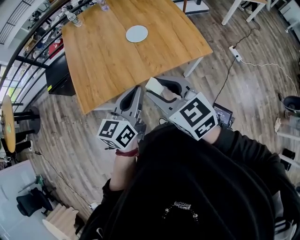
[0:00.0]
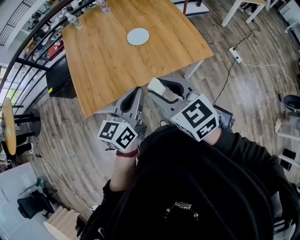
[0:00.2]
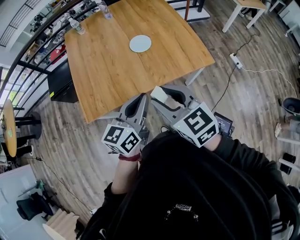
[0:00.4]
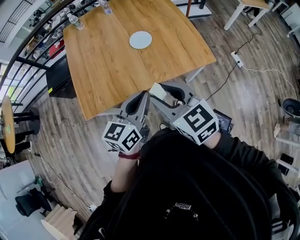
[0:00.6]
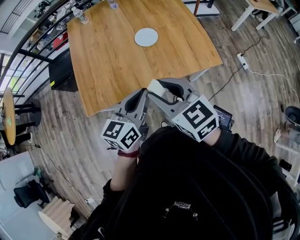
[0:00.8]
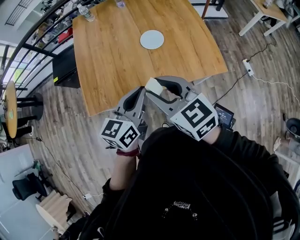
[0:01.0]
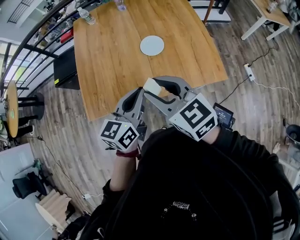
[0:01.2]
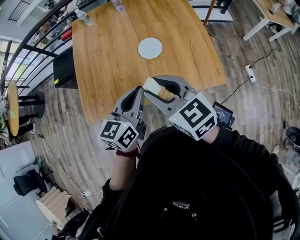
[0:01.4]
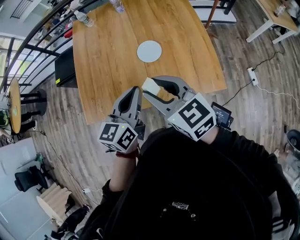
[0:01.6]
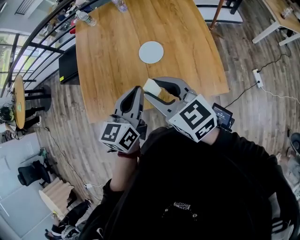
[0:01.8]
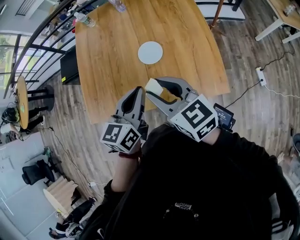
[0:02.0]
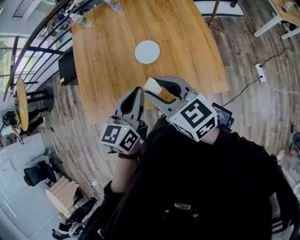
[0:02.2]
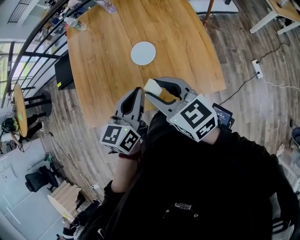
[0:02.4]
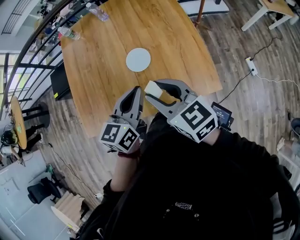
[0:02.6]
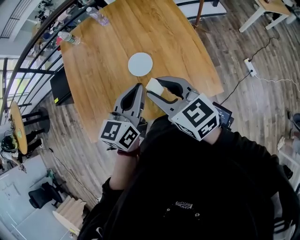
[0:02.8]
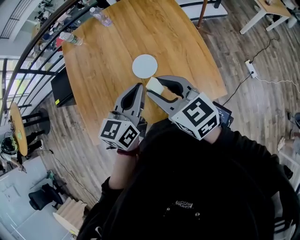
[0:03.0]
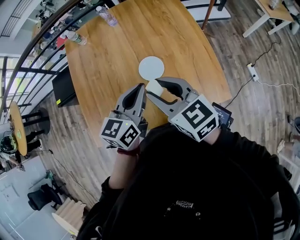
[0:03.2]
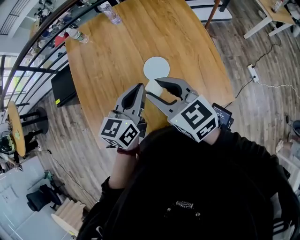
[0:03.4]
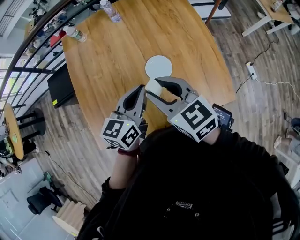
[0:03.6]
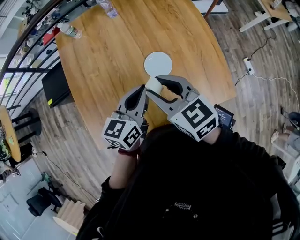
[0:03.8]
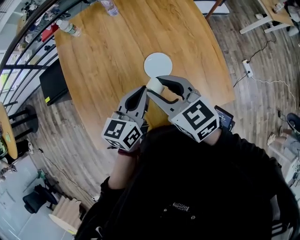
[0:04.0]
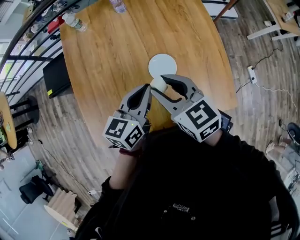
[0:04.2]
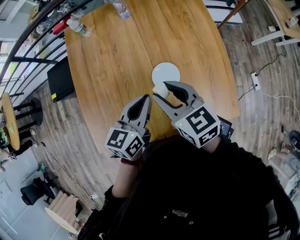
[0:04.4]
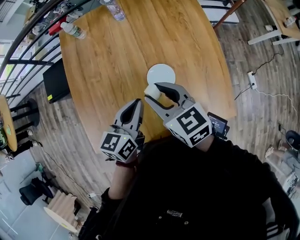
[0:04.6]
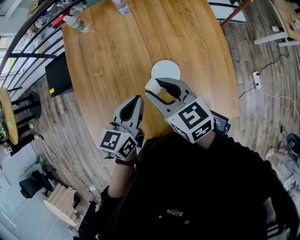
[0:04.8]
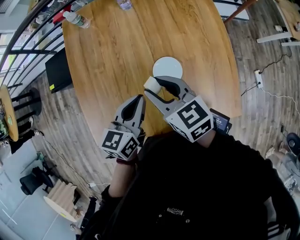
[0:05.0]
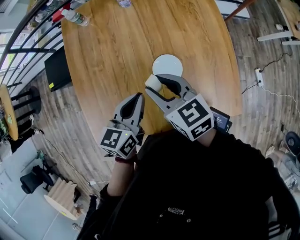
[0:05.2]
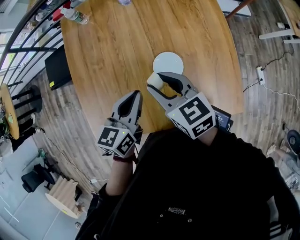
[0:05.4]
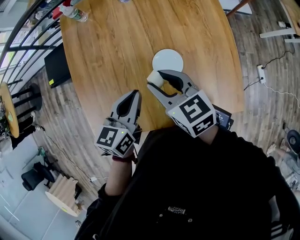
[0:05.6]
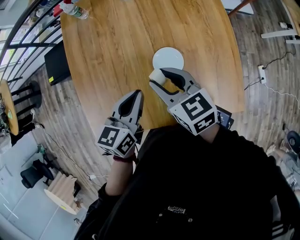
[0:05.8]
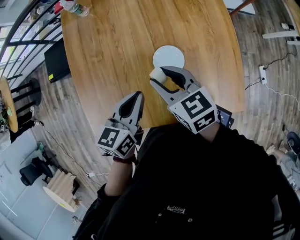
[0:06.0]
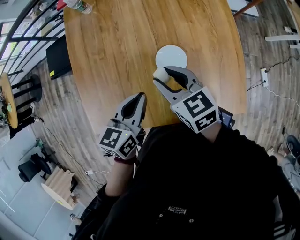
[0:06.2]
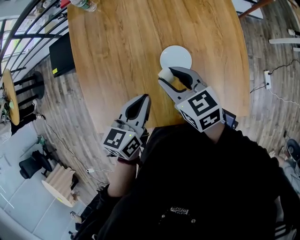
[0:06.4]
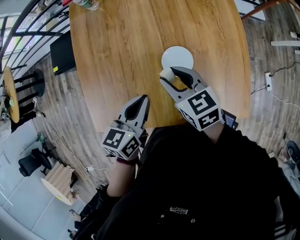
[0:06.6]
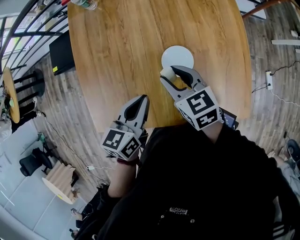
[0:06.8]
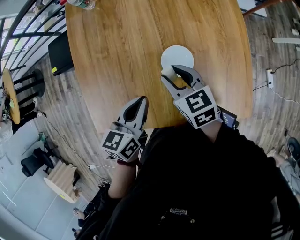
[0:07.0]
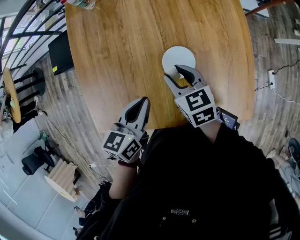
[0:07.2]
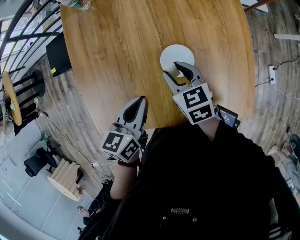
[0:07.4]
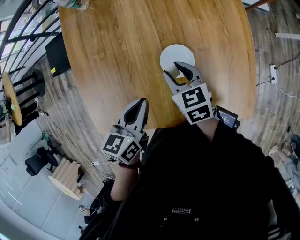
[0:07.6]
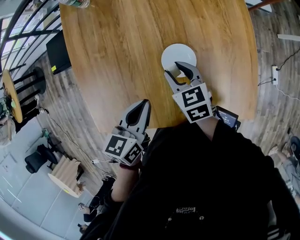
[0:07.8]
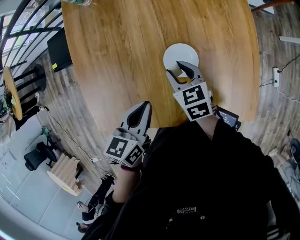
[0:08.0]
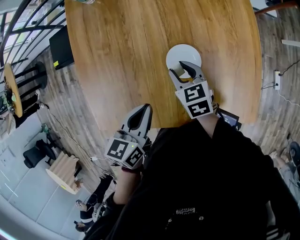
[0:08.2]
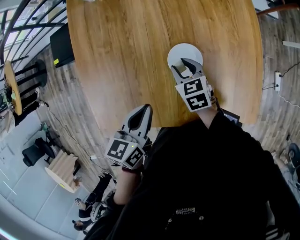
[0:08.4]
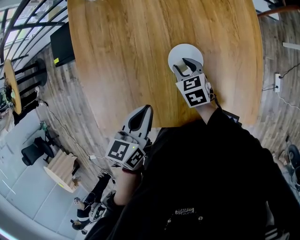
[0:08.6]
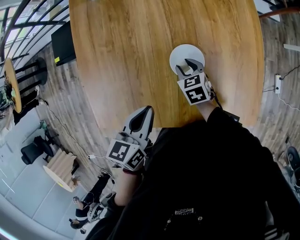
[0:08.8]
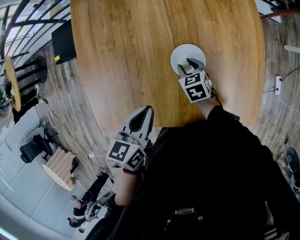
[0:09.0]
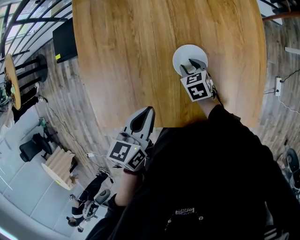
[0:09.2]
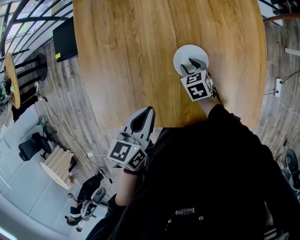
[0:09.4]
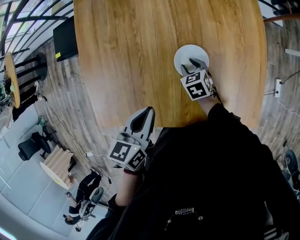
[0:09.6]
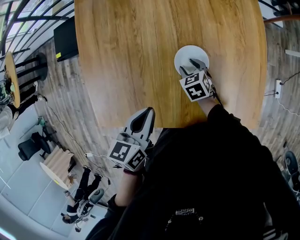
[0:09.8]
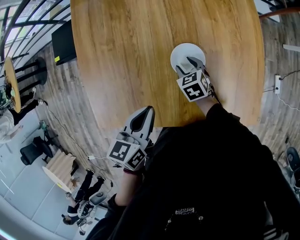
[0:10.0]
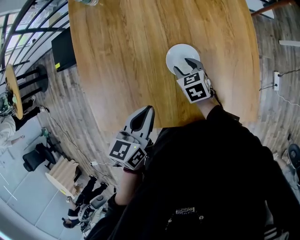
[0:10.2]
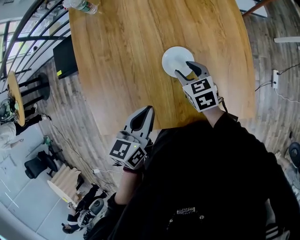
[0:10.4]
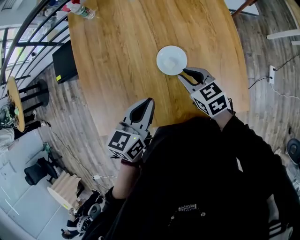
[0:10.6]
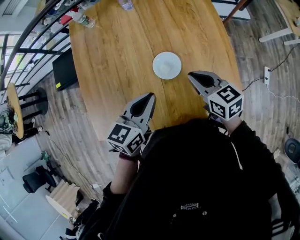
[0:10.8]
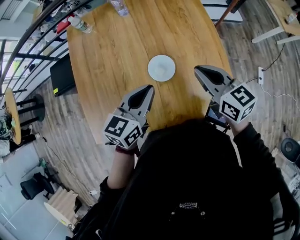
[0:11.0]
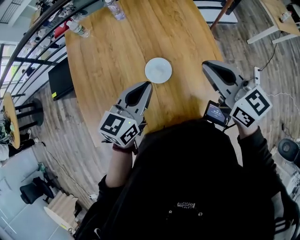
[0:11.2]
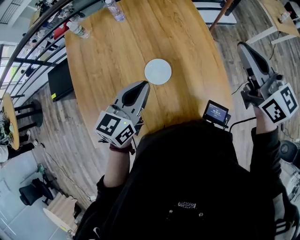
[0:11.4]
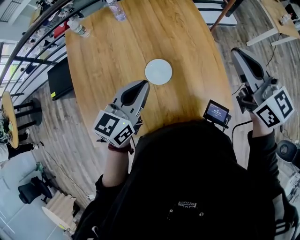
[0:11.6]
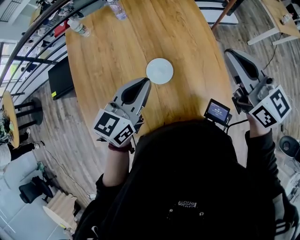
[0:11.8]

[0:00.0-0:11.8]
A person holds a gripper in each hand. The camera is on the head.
0:00.0 to 0:01.4: The grippers both shift forward by some 15 cm.
0:01.4 to 0:03.0: Both grippers move forward and to the right, some 15 cm.
0:03.0 to 0:04.4: The left gripper goes approximately 15 cm to the left, forward and downward. Meanwhile the right gripper is displaced forward, to the left and downward by about 15 cm.
0:04.4 to 0:06.0: The right gripper heads downward, covering some 5 cm.
0:06.0 to 0:07.4: The right gripper is displaced downward by some 10 cm.
0:07.4 to 0:08.8: The right gripper shifts about 15 cm downward.
0:08.8 to 0:10.4: The right gripper is displaced upward by roughly 10 cm.
0:10.4 to 0:11.8: The left gripper moves upward, forward and to the right, about 15 cm, and turns by about 30 degrees; the right gripper travels upward and to the right by some 40 cm, angles its fingers upward, by about 40 degrees, and closes its fingers.

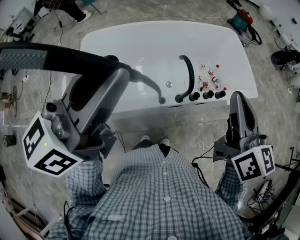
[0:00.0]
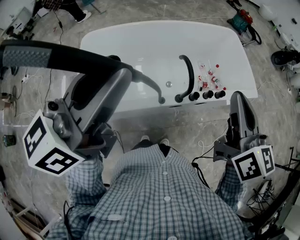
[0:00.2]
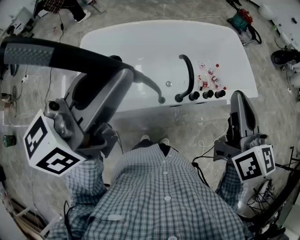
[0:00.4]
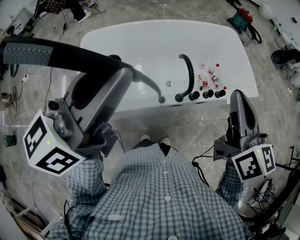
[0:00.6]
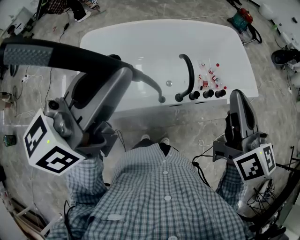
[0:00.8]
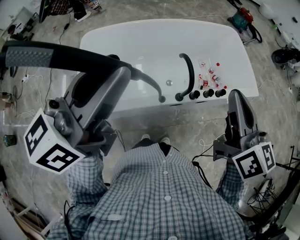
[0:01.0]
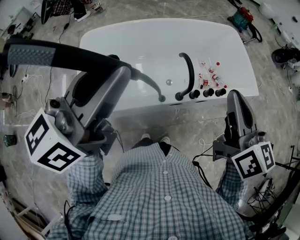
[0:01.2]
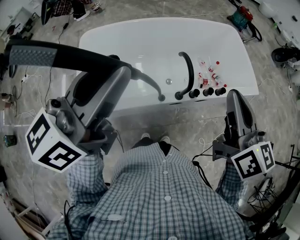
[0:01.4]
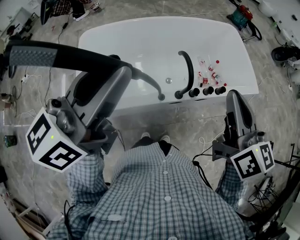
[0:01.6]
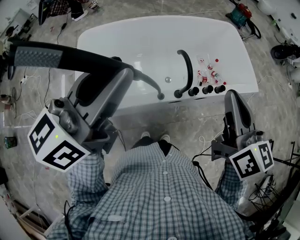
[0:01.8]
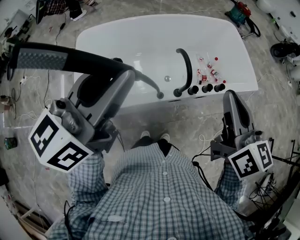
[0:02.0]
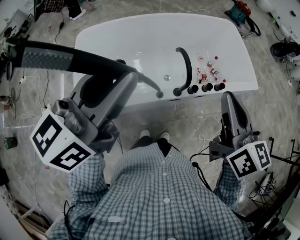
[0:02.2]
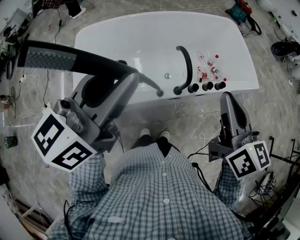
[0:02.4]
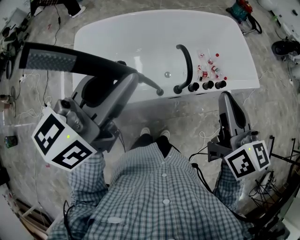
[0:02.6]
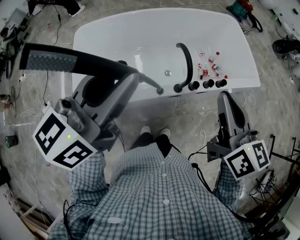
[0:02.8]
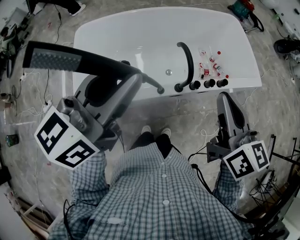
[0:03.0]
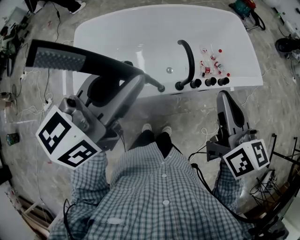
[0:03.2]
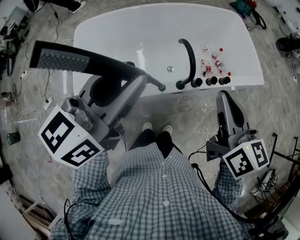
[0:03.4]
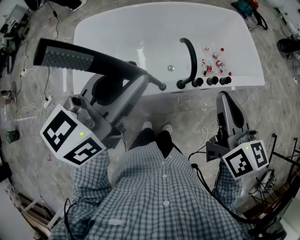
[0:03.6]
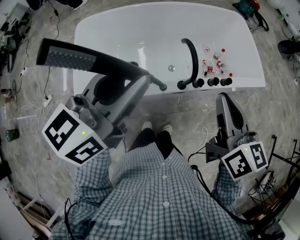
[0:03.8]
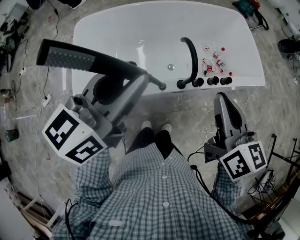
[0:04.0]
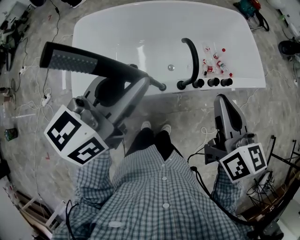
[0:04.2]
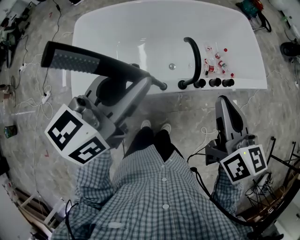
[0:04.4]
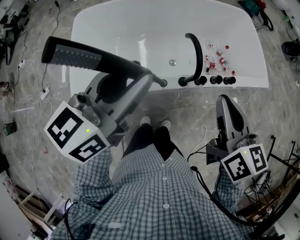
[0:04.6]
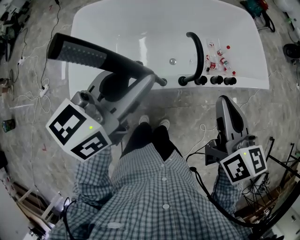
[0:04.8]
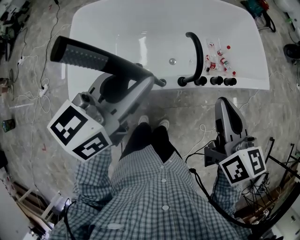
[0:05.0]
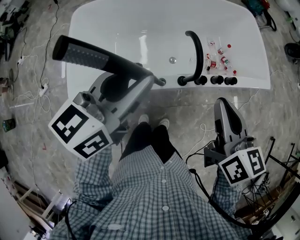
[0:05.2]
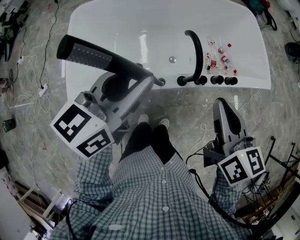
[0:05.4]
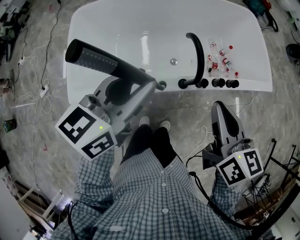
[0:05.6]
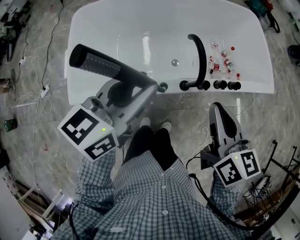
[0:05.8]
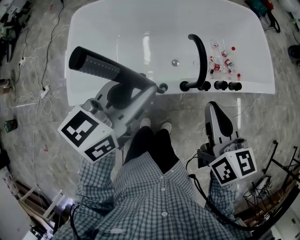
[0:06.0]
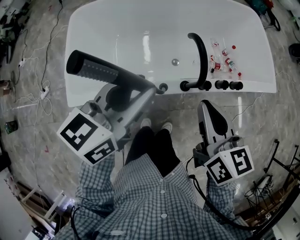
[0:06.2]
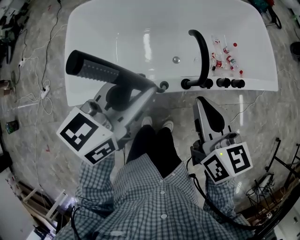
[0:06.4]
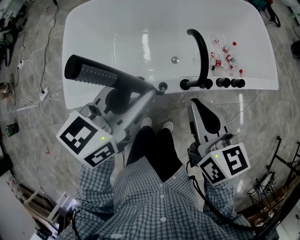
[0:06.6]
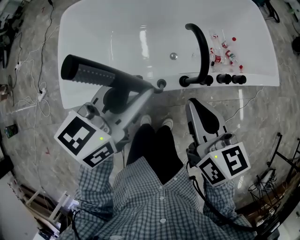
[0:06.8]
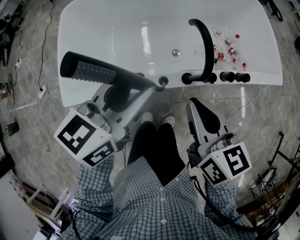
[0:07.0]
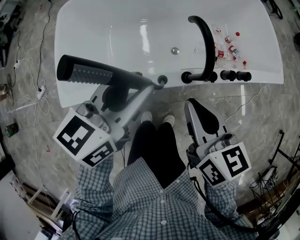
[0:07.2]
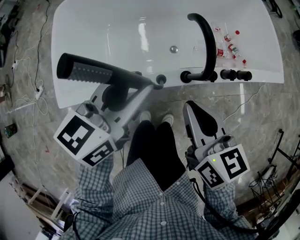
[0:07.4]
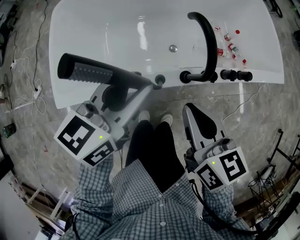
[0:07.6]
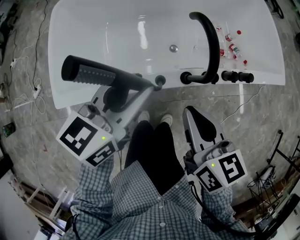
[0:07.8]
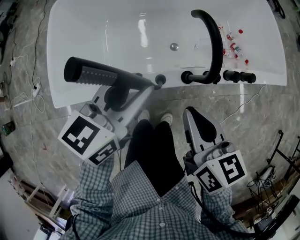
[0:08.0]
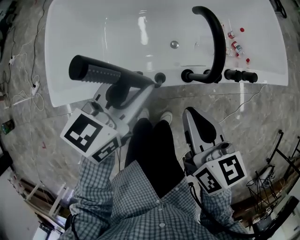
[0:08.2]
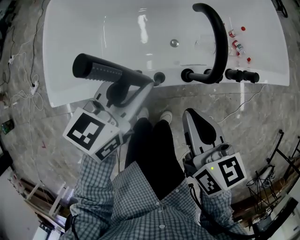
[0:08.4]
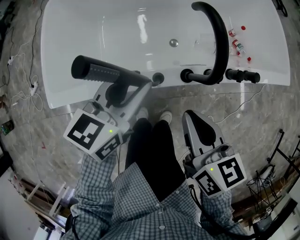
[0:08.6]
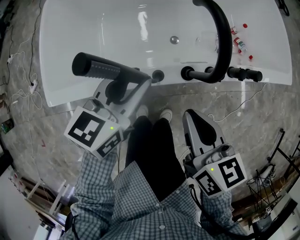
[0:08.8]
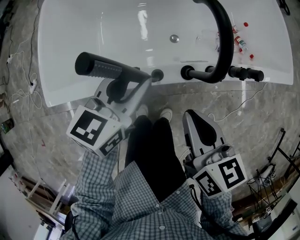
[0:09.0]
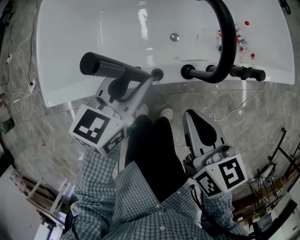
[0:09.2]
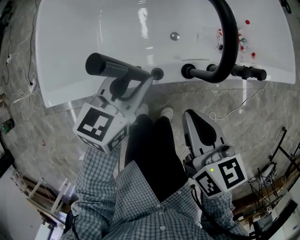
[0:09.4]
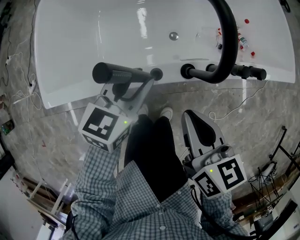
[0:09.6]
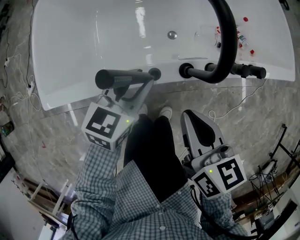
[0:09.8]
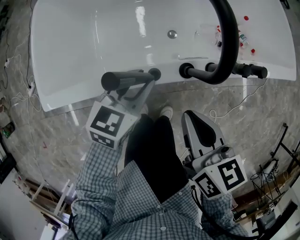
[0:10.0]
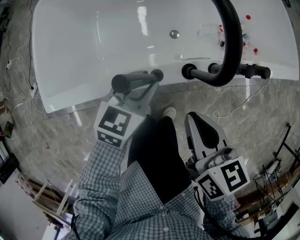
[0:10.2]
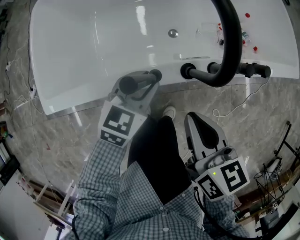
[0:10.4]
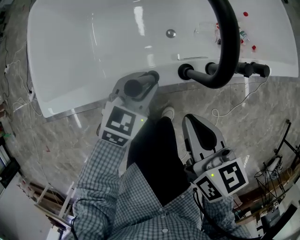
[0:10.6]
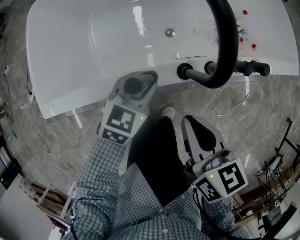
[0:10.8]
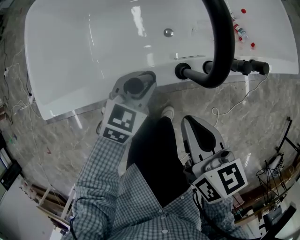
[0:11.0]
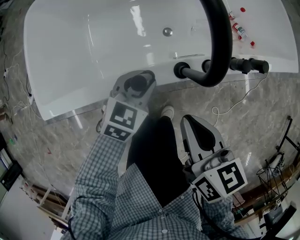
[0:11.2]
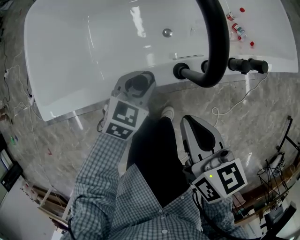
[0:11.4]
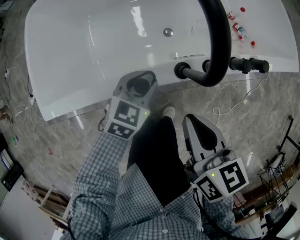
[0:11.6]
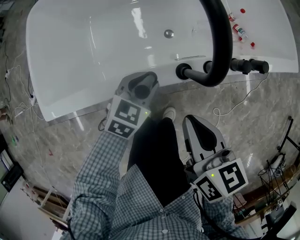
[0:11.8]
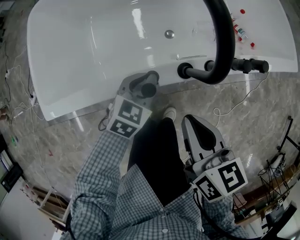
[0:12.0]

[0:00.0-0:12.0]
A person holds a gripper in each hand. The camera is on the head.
0:00.0 to 0:01.6: The grippers move only a little.
0:01.6 to 0:03.0: Both grippers move downward, about 5 cm.
0:03.0 to 0:04.4: The left gripper heads downward, covering about 5 cm, while the right gripper ends up roughly 5 cm from where it was.
0:04.4 to 0:06.0: The two grippers go roughly 10 cm downward.
0:06.0 to 0:07.6: Both grippers travel together downward, about 10 cm.
0:07.6 to 0:09.0: The right gripper is displaced downward by approximately 10 cm; the left gripper heads downward, covering approximately 10 cm.
0:09.0 to 0:10.4: The left gripper goes approximately 10 cm downward.
0:10.4 to 0:12.0: The left gripper is displaced downward by roughly 5 cm.
